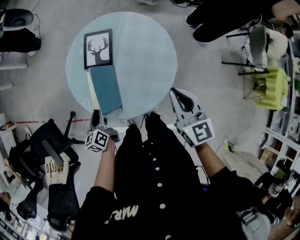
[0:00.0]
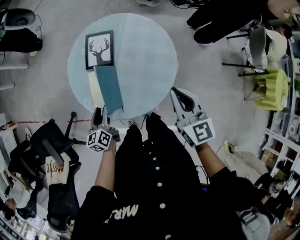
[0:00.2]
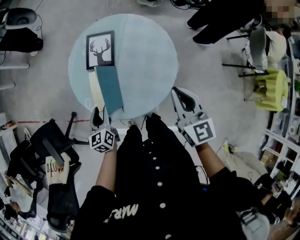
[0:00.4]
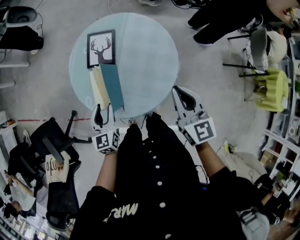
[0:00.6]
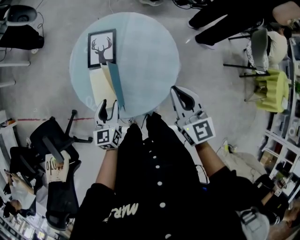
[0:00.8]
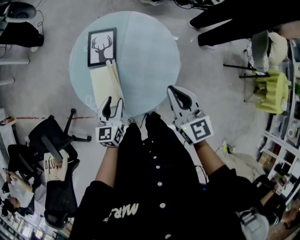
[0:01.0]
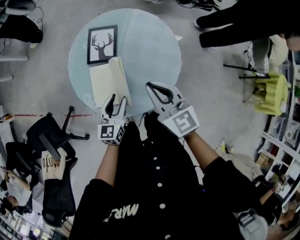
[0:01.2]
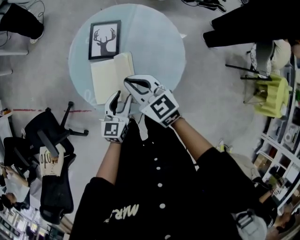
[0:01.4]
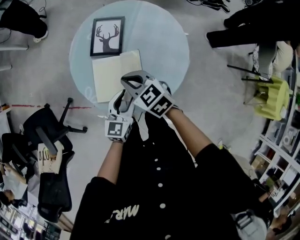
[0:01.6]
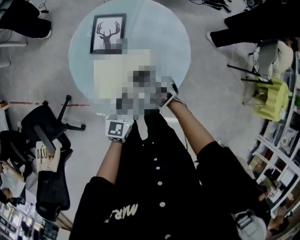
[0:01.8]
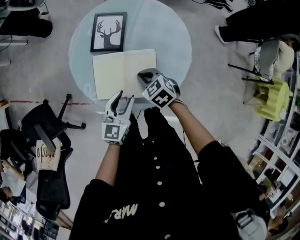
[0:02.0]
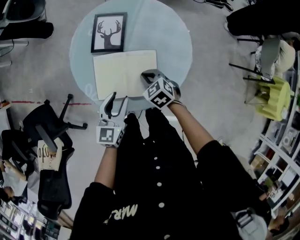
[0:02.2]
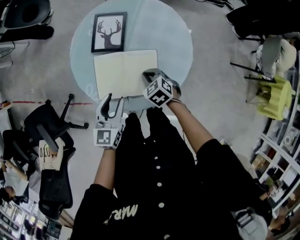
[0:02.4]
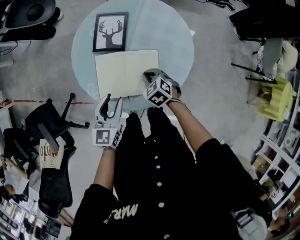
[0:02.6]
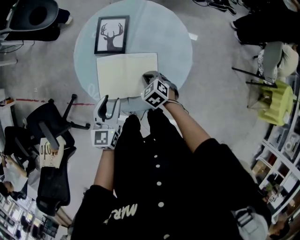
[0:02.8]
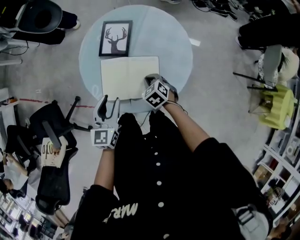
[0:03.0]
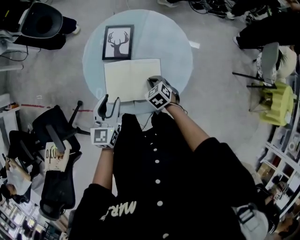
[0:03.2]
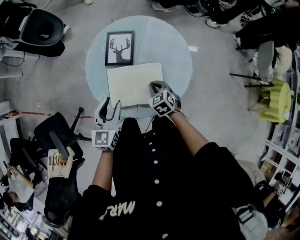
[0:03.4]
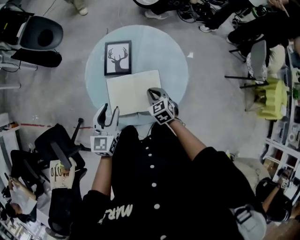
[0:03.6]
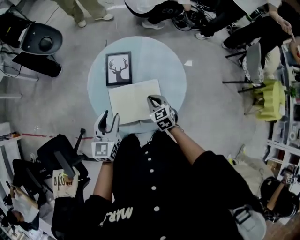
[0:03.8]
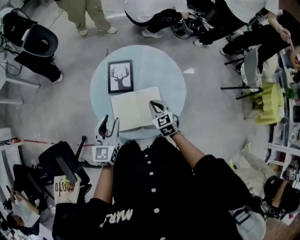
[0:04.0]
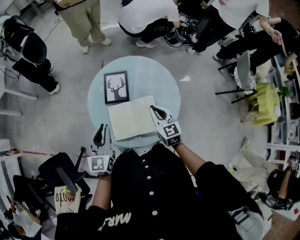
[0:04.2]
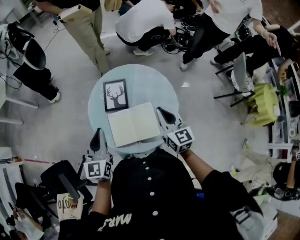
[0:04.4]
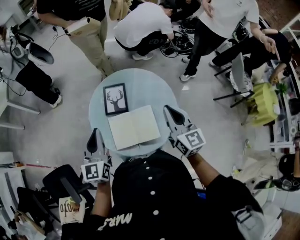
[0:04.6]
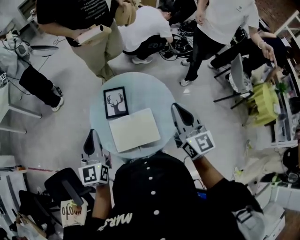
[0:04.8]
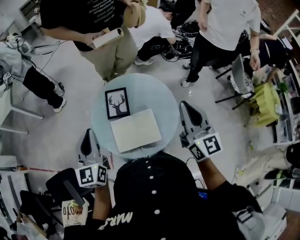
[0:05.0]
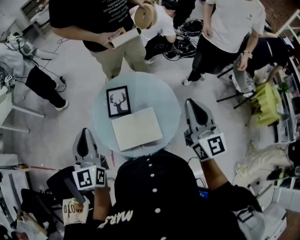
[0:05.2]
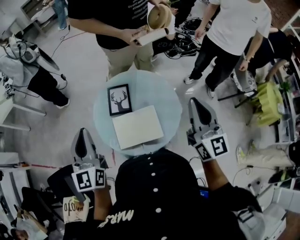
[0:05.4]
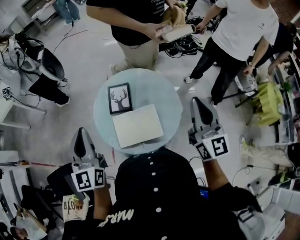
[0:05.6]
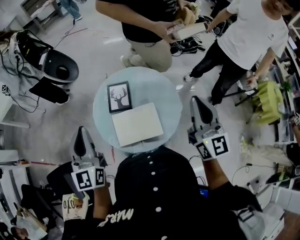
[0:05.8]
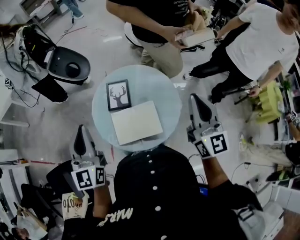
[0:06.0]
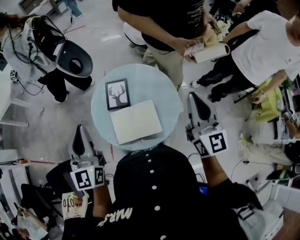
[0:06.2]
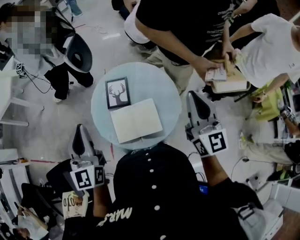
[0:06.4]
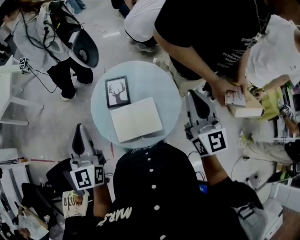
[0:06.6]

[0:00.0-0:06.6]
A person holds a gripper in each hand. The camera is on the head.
0:00.0 to 0:01.6: The right gripper is displaced to the left and downward by approximately 25 cm, and changes its angle by about 40 degrees, while the left gripper heads to the right, covering about 15 cm, and turns by some 40 degrees.
0:01.6 to 0:03.2: The right gripper travels downward and to the right by some 15 cm, and swivels some 30 degrees, while the left gripper moves to the left and upward, approximately 15 cm.
0:03.2 to 0:05.0: The left gripper travels upward by roughly 25 cm, and closes, while the right gripper heads upward, covering approximately 50 cm, and tips its fingers upward by some 60 degrees.
0:05.0 to 0:06.6: There are only small adjustments of the grippers.

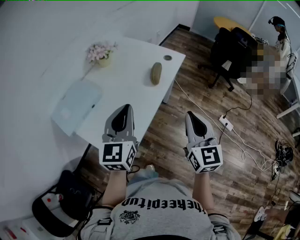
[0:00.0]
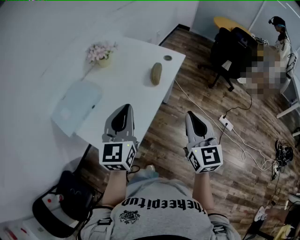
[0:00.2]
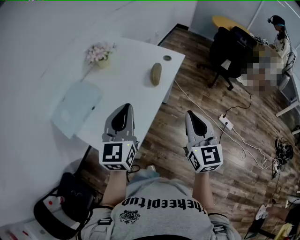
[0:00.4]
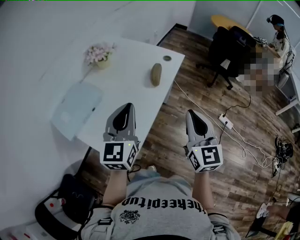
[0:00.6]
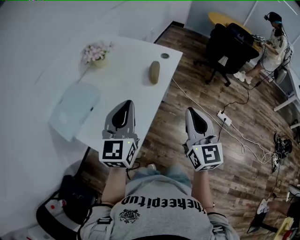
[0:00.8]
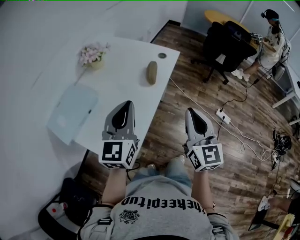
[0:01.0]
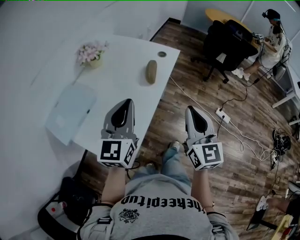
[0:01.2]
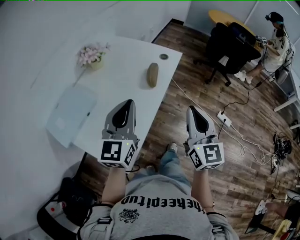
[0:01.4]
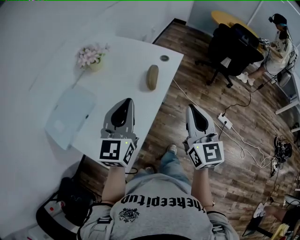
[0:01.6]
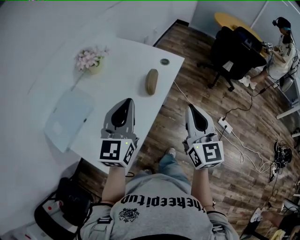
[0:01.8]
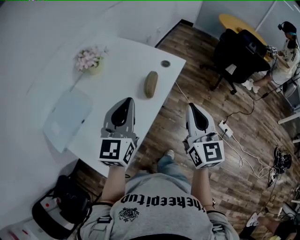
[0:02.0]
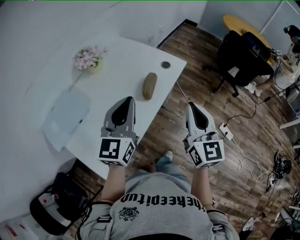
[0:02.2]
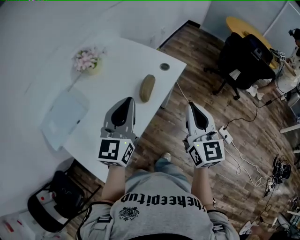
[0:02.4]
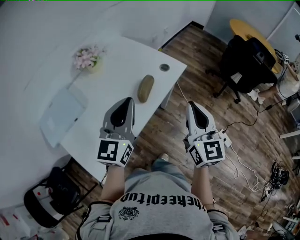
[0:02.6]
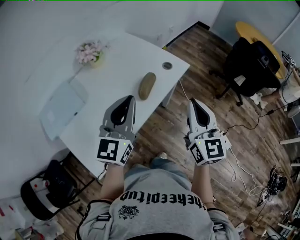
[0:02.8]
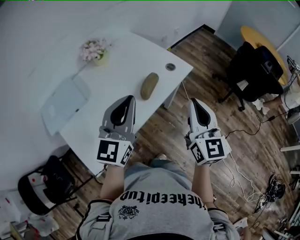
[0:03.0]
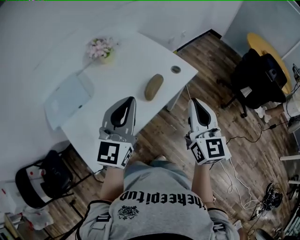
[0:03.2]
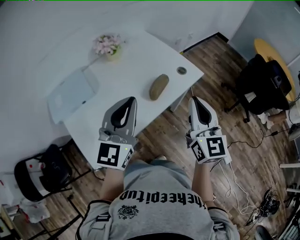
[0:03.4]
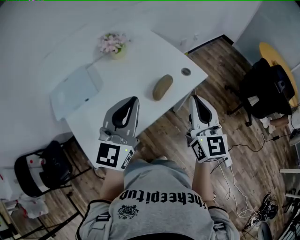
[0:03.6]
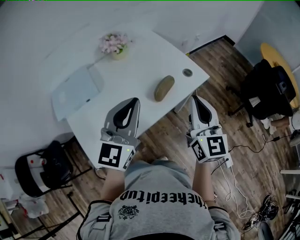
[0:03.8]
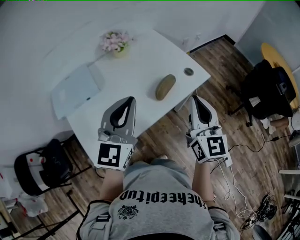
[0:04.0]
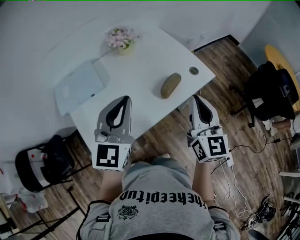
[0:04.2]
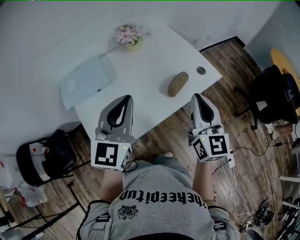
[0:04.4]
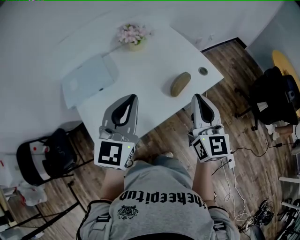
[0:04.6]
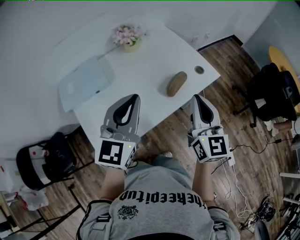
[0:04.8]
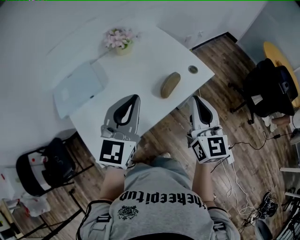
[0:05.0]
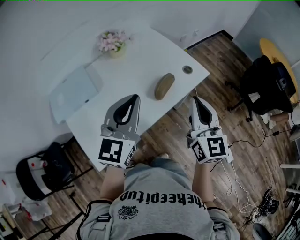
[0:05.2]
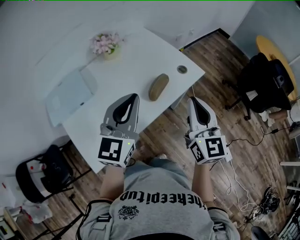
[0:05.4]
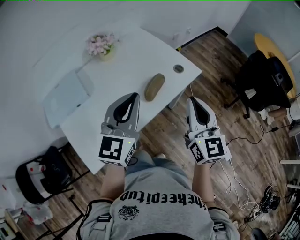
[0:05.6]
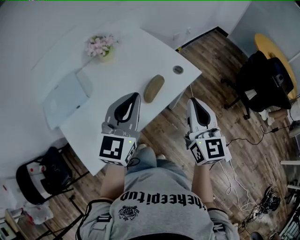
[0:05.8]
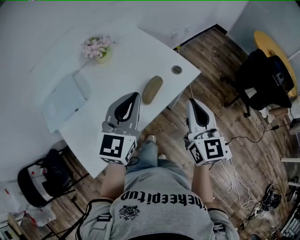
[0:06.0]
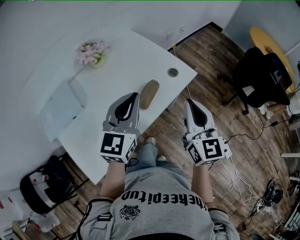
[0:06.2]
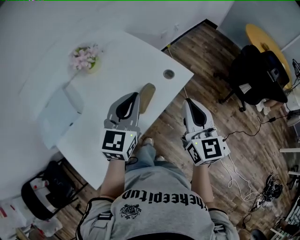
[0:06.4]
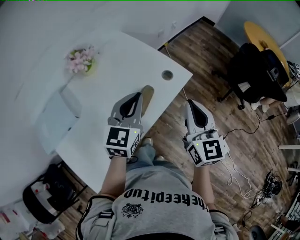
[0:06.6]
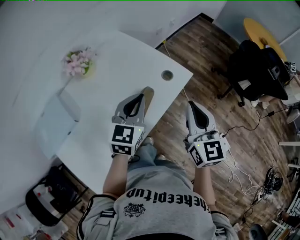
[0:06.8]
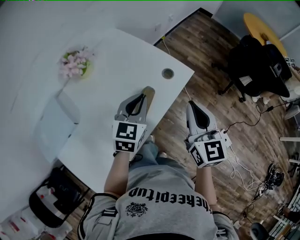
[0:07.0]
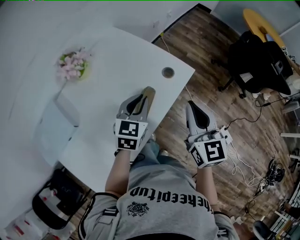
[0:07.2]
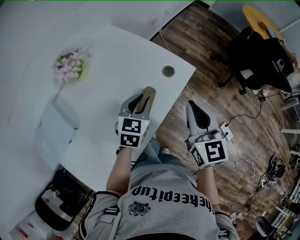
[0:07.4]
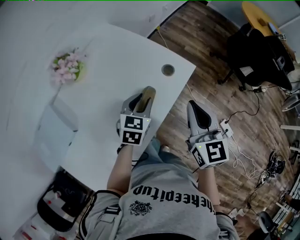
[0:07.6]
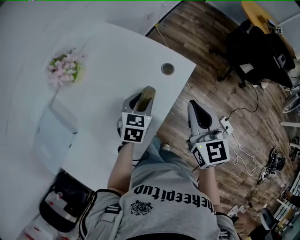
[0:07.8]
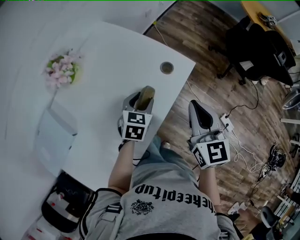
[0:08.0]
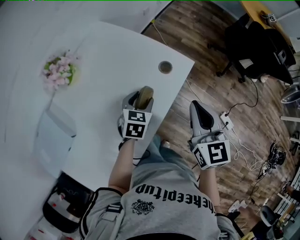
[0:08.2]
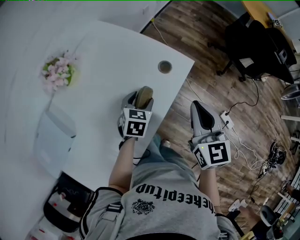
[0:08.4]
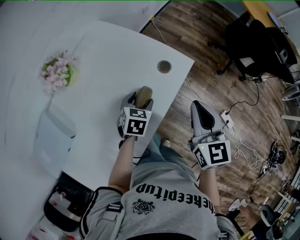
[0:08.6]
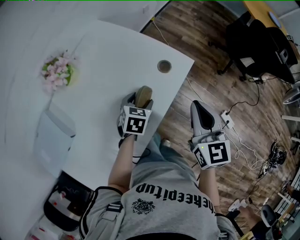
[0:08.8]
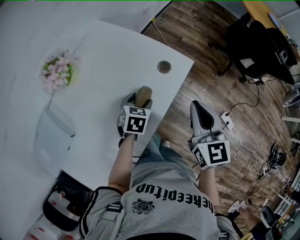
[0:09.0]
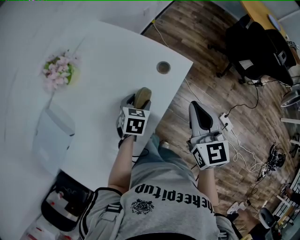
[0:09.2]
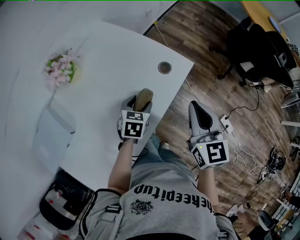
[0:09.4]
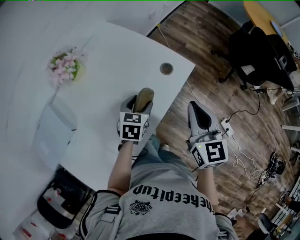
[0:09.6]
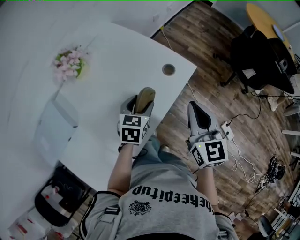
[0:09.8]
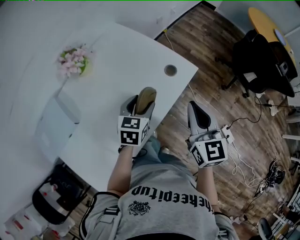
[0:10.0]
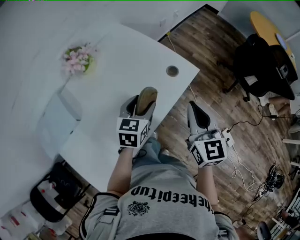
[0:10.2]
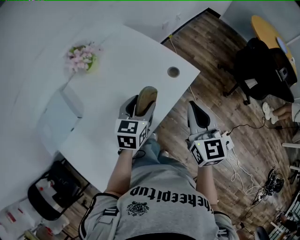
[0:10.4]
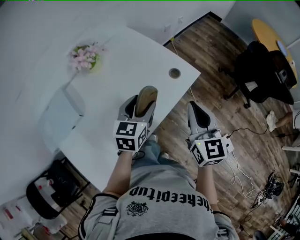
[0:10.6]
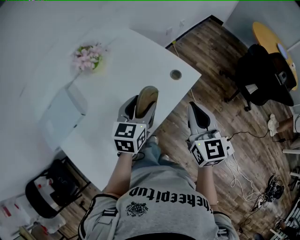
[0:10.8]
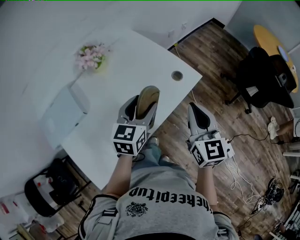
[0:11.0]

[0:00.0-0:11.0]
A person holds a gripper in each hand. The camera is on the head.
0:00.0 to 0:01.6: Both grippers travel together forward, approximately 10 cm.
0:01.6 to 0:03.2: The right gripper travels forward and to the right by some 15 cm; the left gripper is displaced to the right by some 10 cm.
0:03.2 to 0:04.8: Both grippers move to the left, about 10 cm.
0:04.8 to 0:06.2: The right gripper heads to the right and forward, covering about 10 cm. The left gripper is displaced forward and to the right by roughly 15 cm.
0:06.2 to 0:07.8: The left gripper shifts about 25 cm downward and forward, points its fingers roughly 30 degrees further downward, and opens up; the right gripper travels forward and downward by roughly 10 cm.
0:07.8 to 0:09.4: There are only small adjustments of the grippers.
0:09.4 to 0:11.0: The left gripper moves upward and backward, some 20 cm, and rotates about 30 degrees. The right gripper changes place by some 5 cm.

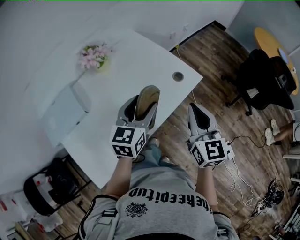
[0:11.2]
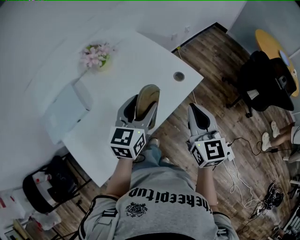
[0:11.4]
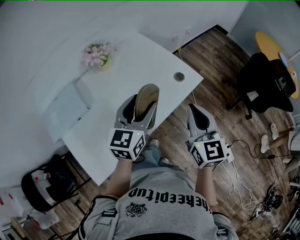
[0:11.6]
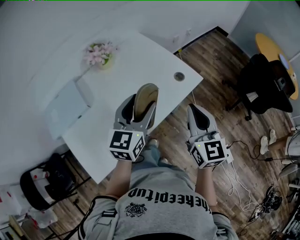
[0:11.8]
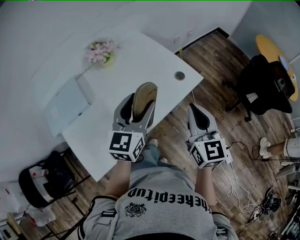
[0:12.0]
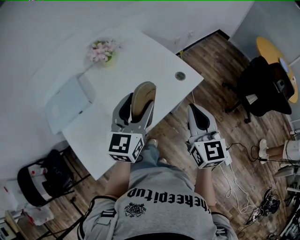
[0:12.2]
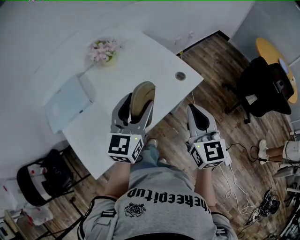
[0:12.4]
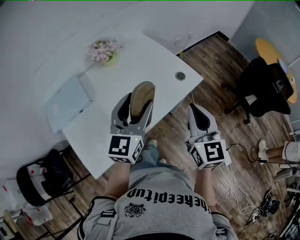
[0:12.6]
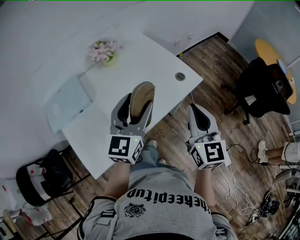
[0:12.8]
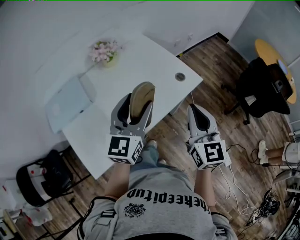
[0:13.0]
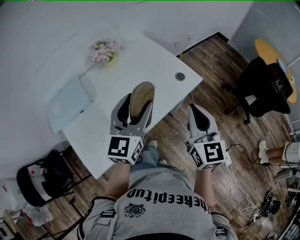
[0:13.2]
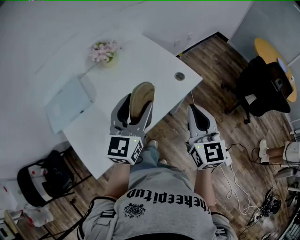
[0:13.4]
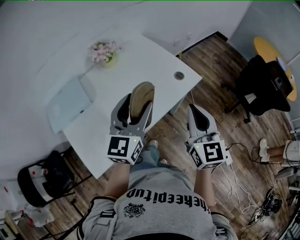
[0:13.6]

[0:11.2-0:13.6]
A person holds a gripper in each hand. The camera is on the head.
0:11.2 to 0:12.4: The right gripper ends up some 5 cm from where it was. Meanwhile the left gripper moves backward and upward, approximately 10 cm.
0:12.4 to 0:13.6: The grippers make only small movements.

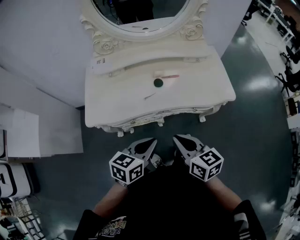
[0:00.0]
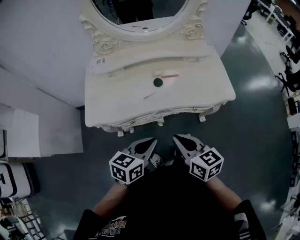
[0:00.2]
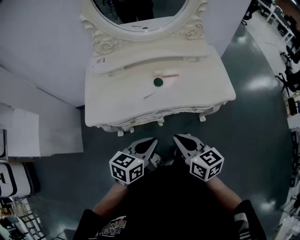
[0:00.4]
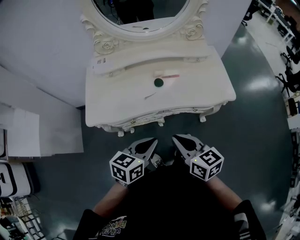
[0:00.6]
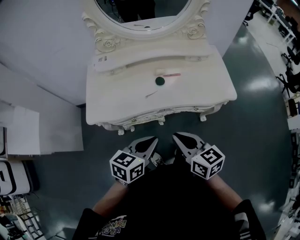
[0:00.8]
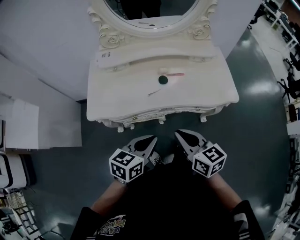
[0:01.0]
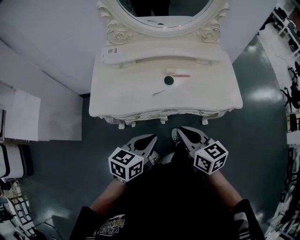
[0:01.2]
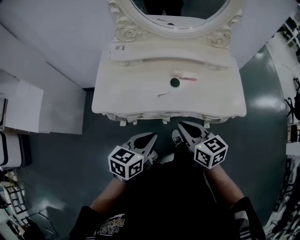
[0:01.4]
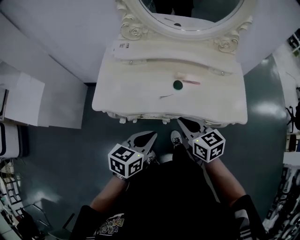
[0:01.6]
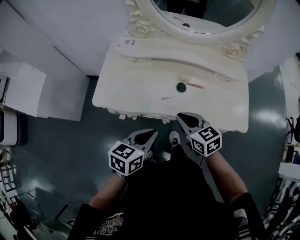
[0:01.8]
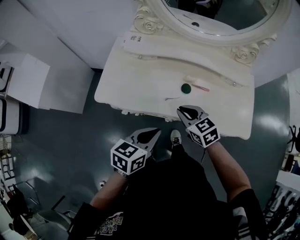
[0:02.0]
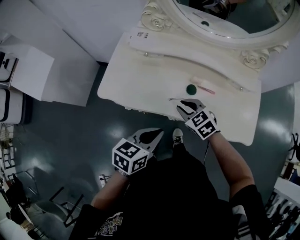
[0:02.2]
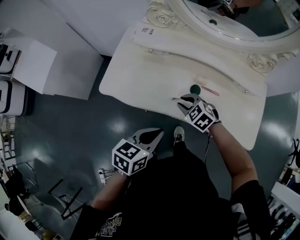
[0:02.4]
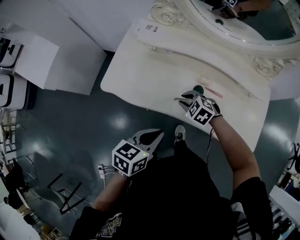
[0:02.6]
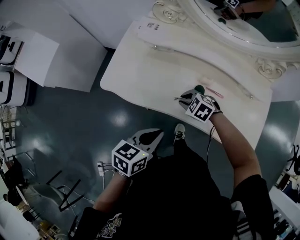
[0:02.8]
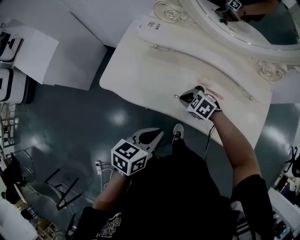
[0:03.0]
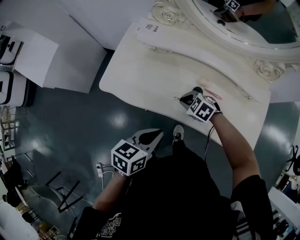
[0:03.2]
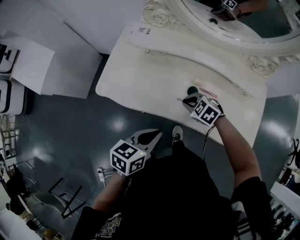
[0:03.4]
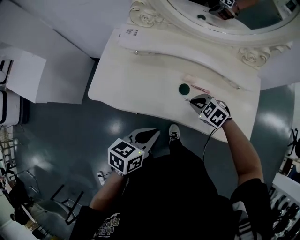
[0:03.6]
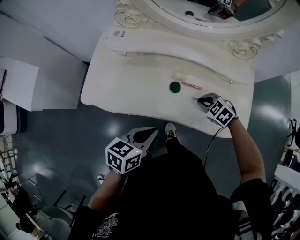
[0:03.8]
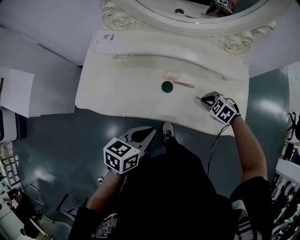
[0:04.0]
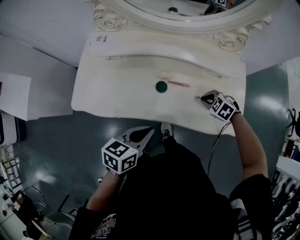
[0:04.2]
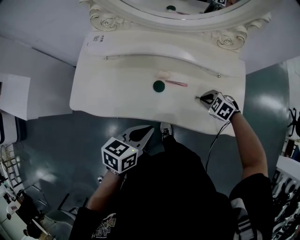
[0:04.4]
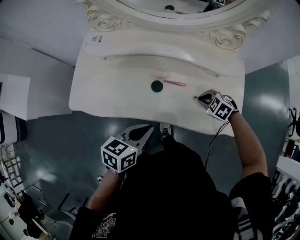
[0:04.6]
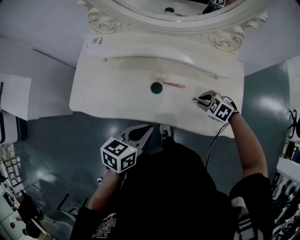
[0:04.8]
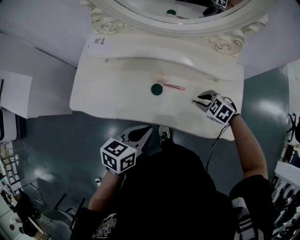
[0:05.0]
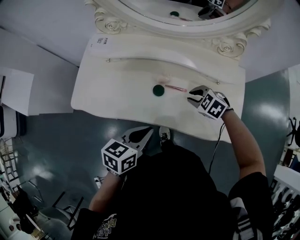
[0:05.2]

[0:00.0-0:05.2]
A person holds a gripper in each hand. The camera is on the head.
0:00.0 to 0:01.8: The left gripper is displaced forward by roughly 5 cm, while the right gripper goes about 15 cm forward, and changes its angle by some 30 degrees.
0:01.8 to 0:03.4: The right gripper goes approximately 15 cm downward and forward, and rotates roughly 50 degrees. The left gripper ends up about 5 cm from where it was.
0:03.4 to 0:05.2: The right gripper travels to the right by about 20 cm, while the left gripper is displaced to the right by some 10 cm.
